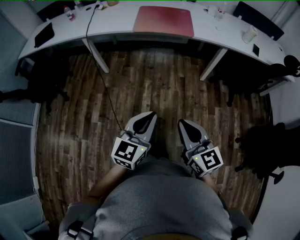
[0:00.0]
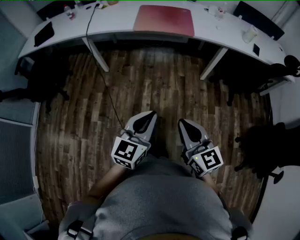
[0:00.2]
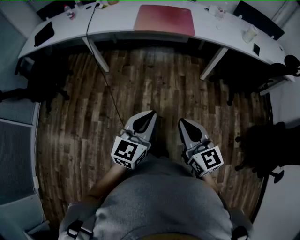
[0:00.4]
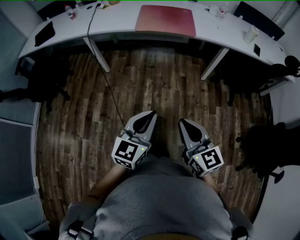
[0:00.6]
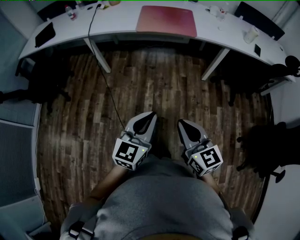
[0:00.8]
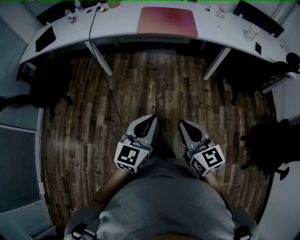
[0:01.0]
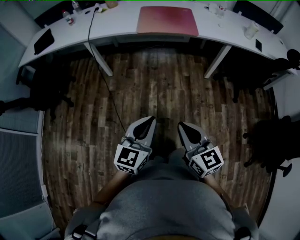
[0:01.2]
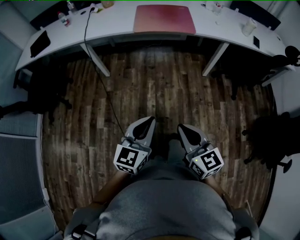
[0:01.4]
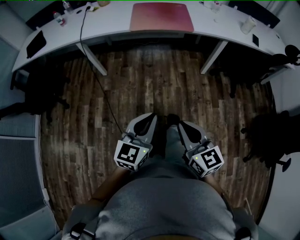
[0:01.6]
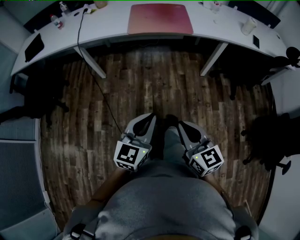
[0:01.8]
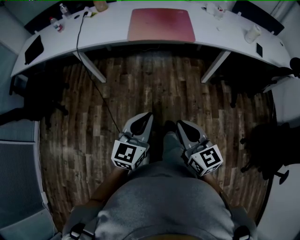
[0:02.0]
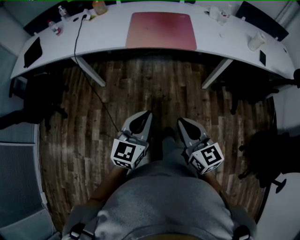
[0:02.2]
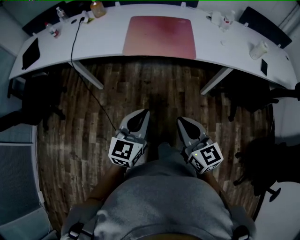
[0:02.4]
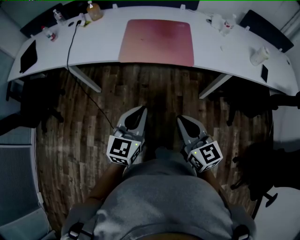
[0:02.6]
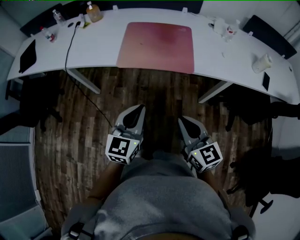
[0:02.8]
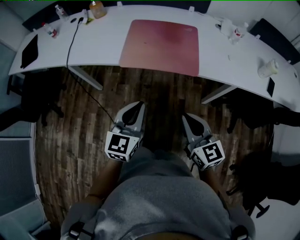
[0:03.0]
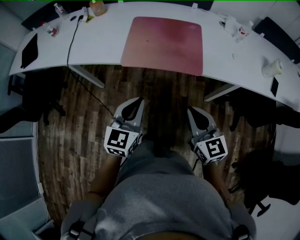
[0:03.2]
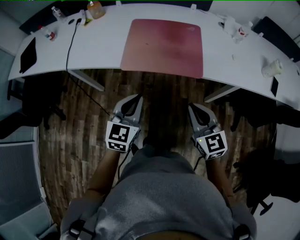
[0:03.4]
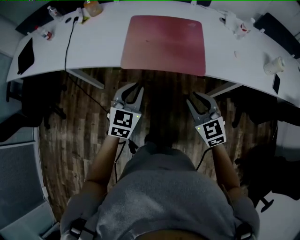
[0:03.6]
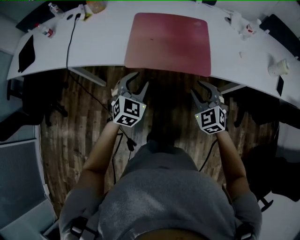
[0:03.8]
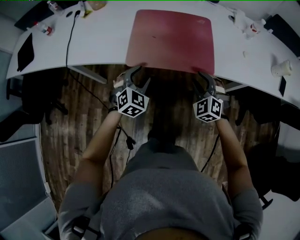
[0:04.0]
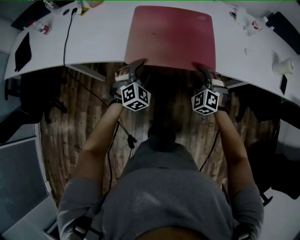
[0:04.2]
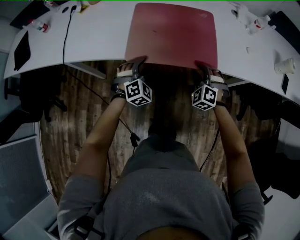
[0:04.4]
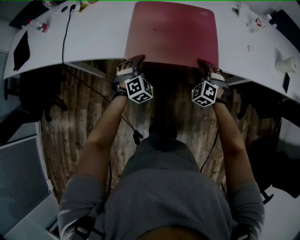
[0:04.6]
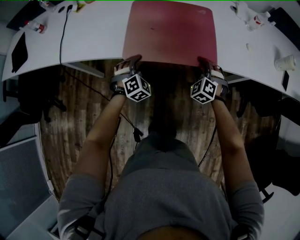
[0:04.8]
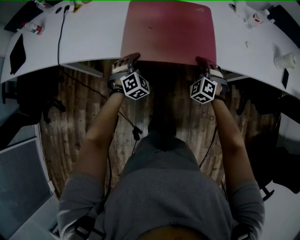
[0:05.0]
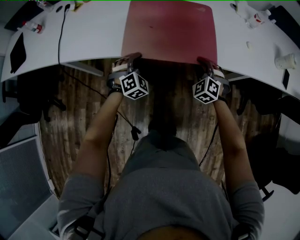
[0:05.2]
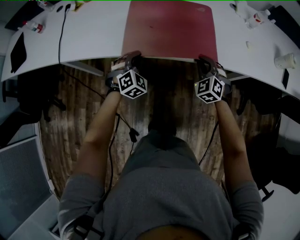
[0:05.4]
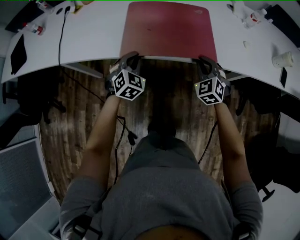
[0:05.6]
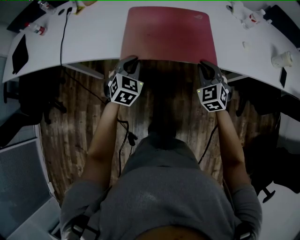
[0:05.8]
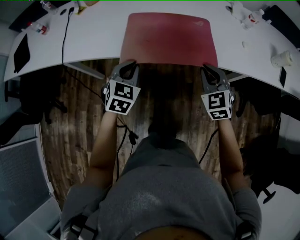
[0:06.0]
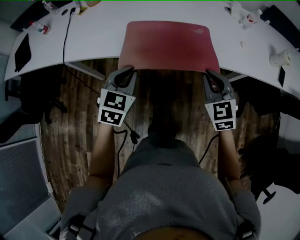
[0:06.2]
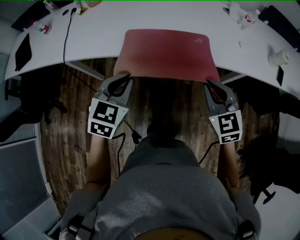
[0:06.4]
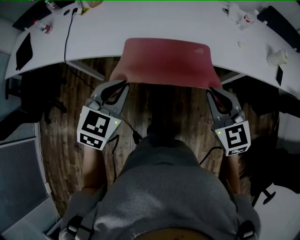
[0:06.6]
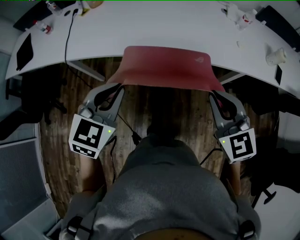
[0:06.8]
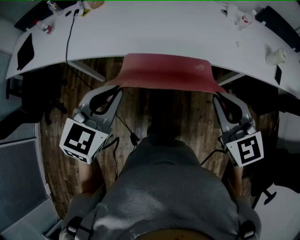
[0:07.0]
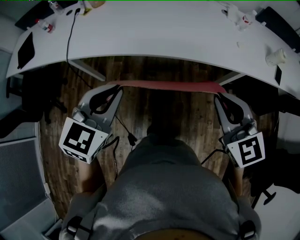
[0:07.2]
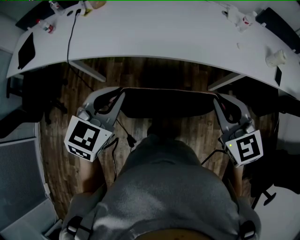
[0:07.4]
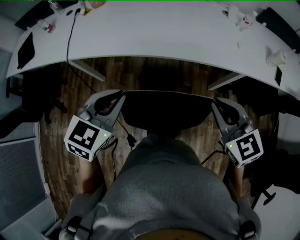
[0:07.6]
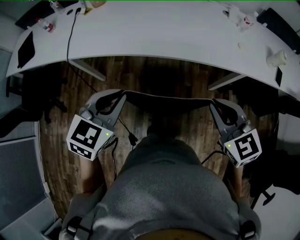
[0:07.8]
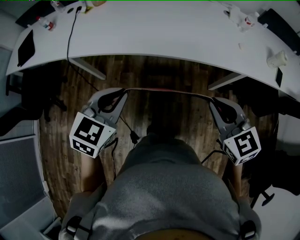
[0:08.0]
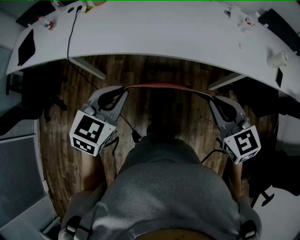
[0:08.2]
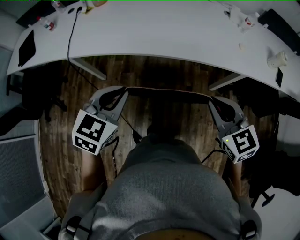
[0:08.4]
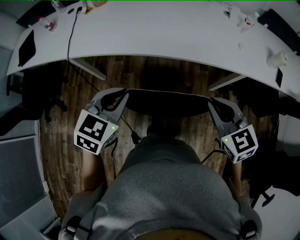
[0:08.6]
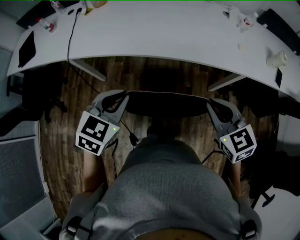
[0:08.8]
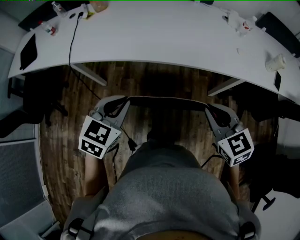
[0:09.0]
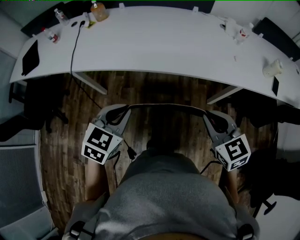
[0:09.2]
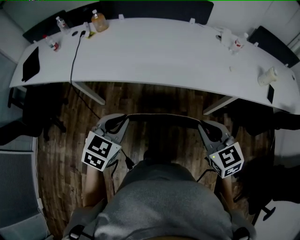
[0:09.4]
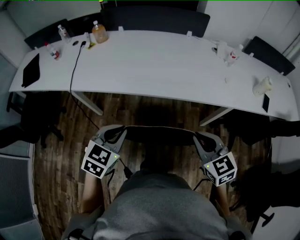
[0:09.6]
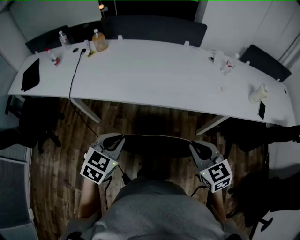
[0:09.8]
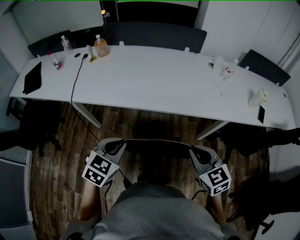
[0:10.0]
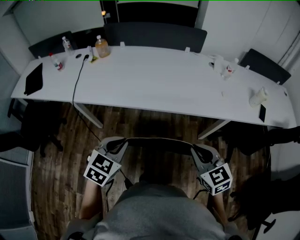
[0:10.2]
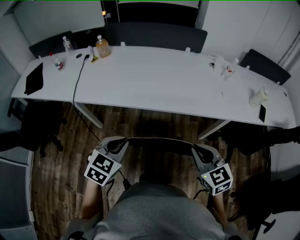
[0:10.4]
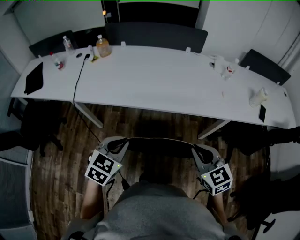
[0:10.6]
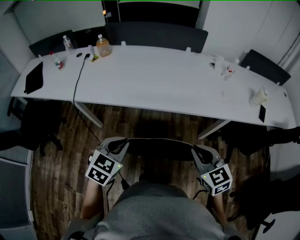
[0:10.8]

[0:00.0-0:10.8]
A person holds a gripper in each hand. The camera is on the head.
0:00.0 to 0:01.6: The right gripper ends up approximately 5 cm from where it was, while the left gripper ends up about 5 cm from where it was.
0:01.6 to 0:03.0: Both grippers move forward, approximately 35 cm.
0:03.0 to 0:04.6: Both grippers move forward and downward, approximately 30 cm. The left gripper rotates around the line of its fingers by roughly 50 degrees, clockwise from behind, and opens, while the right gripper twists roughly 60 degrees counterclockwise, seen from behind, and opens.
0:04.6 to 0:06.2: Both grippers move upward and backward, approximately 20 cm. The right gripper changes its angle by roughly 40 degrees, and closes up; the left gripper swivels approximately 40 degrees, and closes its fingers.
0:06.2 to 0:07.8: The two grippers go some 15 cm backward and upward.
0:07.8 to 0:09.2: The grippers make only small movements.
0:09.2 to 0:10.8: Neither gripper changes place.

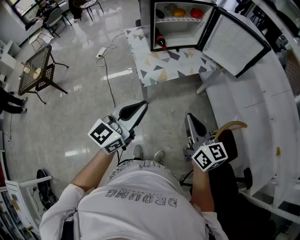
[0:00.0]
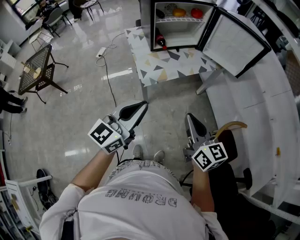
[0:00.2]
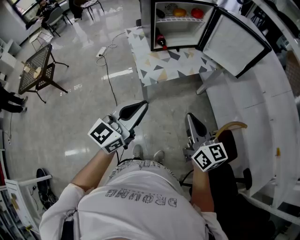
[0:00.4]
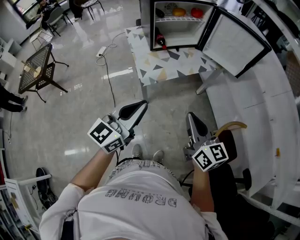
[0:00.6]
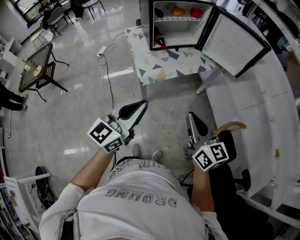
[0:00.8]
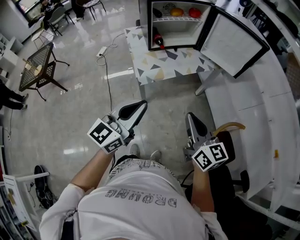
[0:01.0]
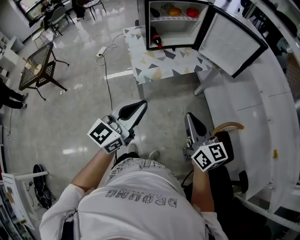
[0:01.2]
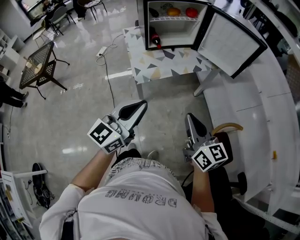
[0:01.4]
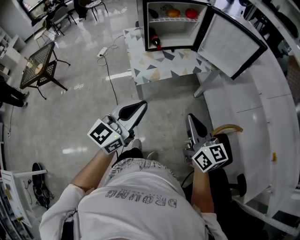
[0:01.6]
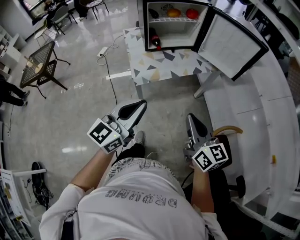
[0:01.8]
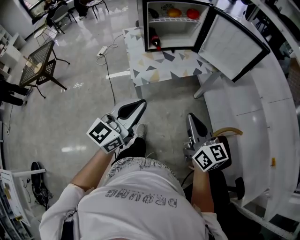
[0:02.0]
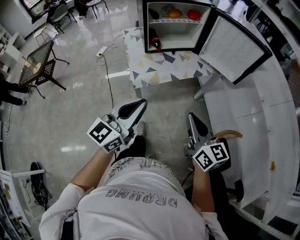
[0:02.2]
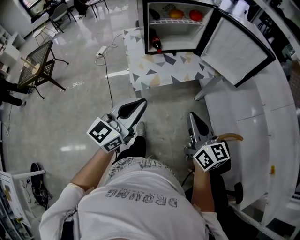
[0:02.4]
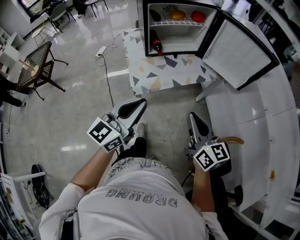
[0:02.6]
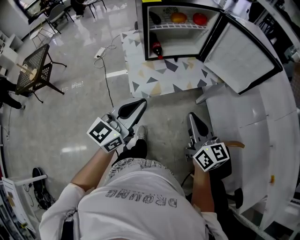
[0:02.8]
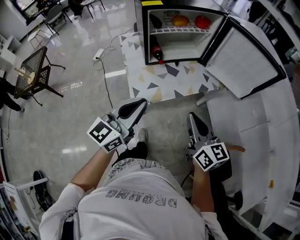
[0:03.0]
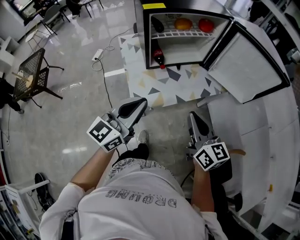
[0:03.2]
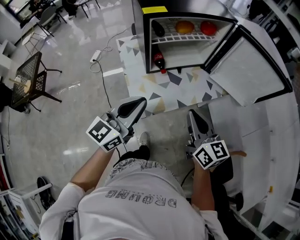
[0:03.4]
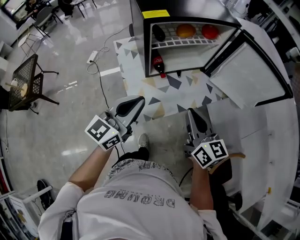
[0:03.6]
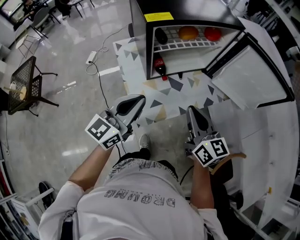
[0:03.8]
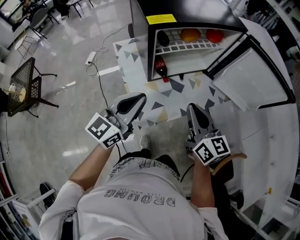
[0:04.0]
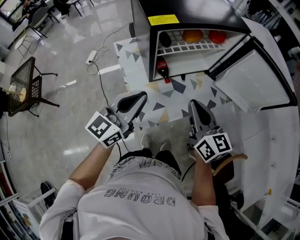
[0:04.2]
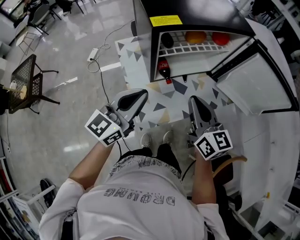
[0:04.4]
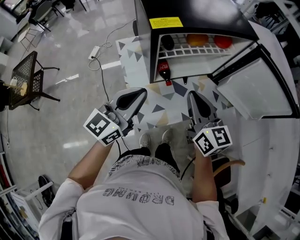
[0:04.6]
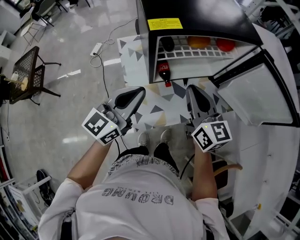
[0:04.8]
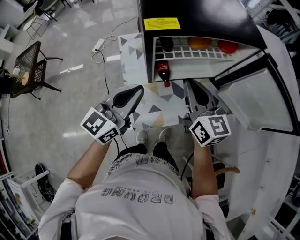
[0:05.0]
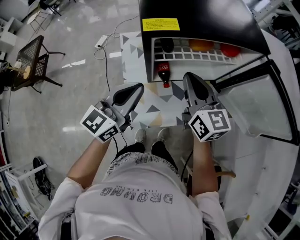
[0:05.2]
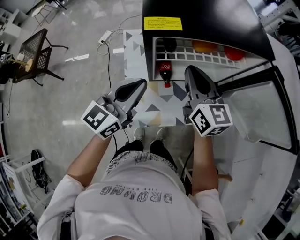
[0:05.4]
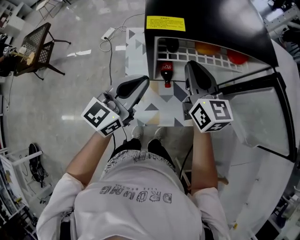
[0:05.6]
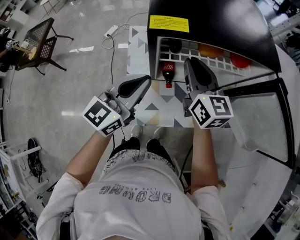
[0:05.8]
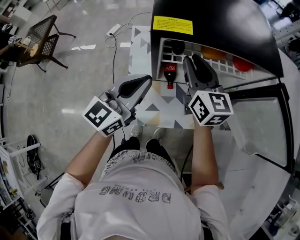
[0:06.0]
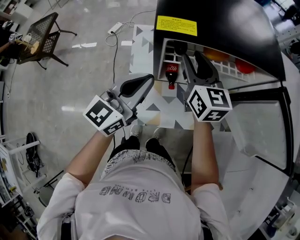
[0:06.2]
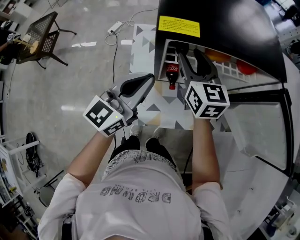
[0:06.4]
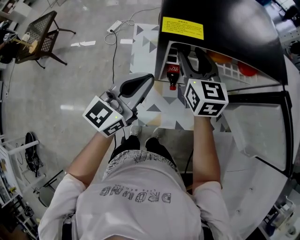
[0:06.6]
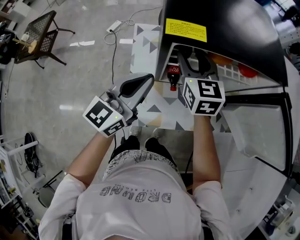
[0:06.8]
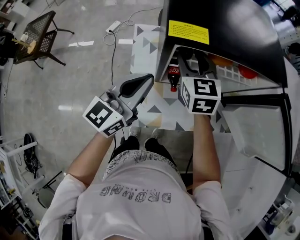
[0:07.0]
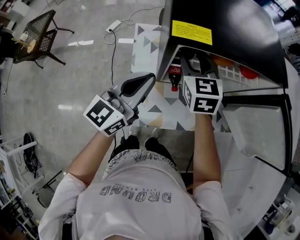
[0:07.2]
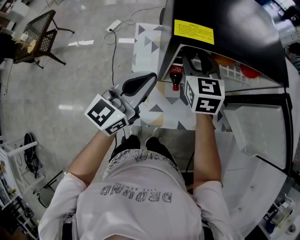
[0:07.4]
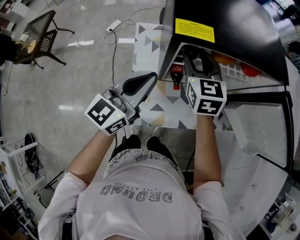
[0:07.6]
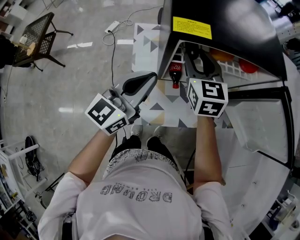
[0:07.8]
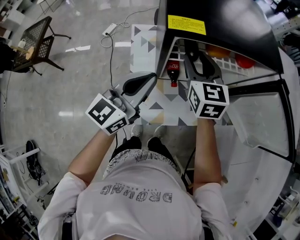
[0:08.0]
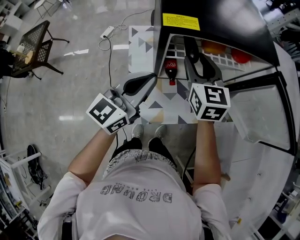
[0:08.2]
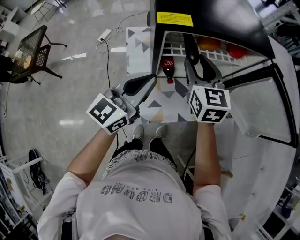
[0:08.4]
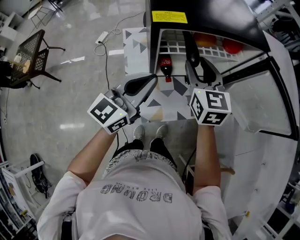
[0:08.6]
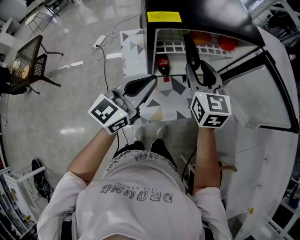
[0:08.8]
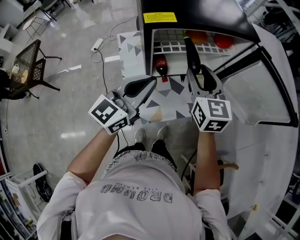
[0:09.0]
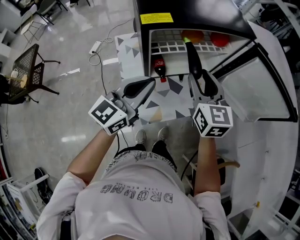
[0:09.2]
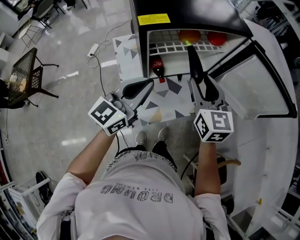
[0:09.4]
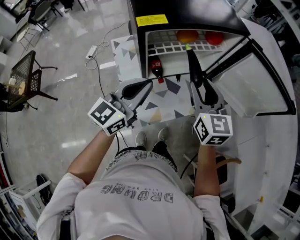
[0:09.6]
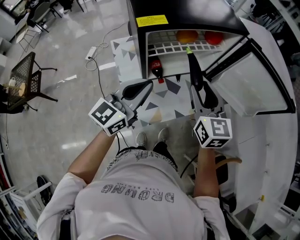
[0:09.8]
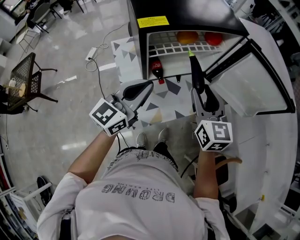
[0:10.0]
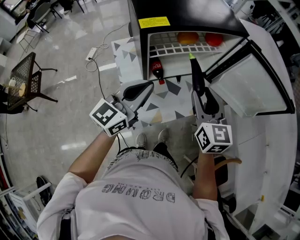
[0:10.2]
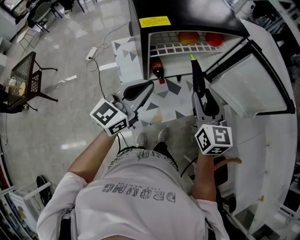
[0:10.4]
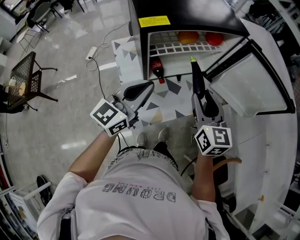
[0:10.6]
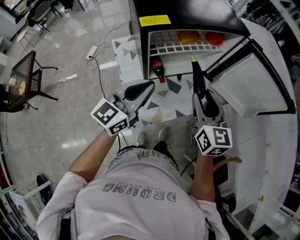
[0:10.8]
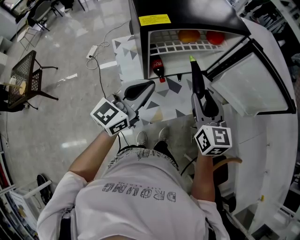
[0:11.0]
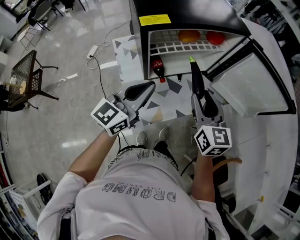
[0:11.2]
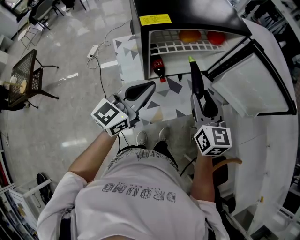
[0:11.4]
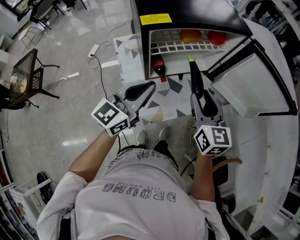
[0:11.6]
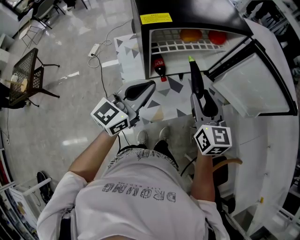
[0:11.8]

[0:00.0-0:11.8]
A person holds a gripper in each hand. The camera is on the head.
0:00.0 to 0:01.4: The two grippers go about 5 cm to the right.
0:01.4 to 0:03.0: Both grippers travel together forward, roughly 20 cm.
0:03.0 to 0:04.4: Both grippers travel together forward and to the left, about 20 cm.
0:04.4 to 0:06.0: The left gripper goes some 10 cm forward. The right gripper travels forward by approximately 20 cm.
0:06.0 to 0:07.4: The right gripper ends up roughly 5 cm from where it was, turns by some 20 degrees, and opens up.
0:07.4 to 0:08.8: The left gripper changes place by about 5 cm. The right gripper is displaced to the right and backward by roughly 15 cm.
0:08.8 to 0:10.4: The right gripper is displaced backward and to the right by some 10 cm.
0:10.4 to 0:11.8: The grippers stay close to where they were, moving slightly.

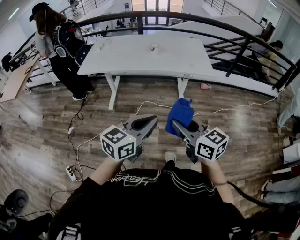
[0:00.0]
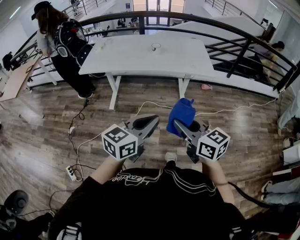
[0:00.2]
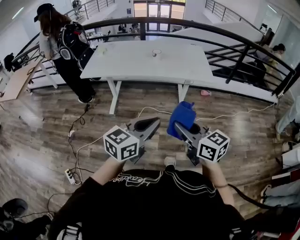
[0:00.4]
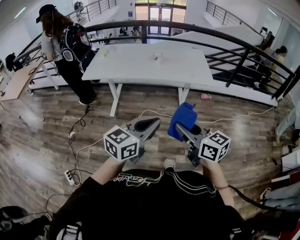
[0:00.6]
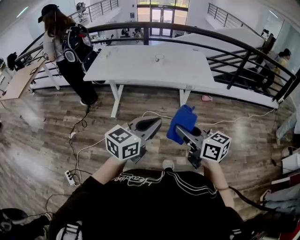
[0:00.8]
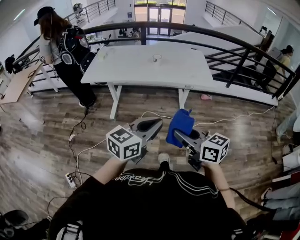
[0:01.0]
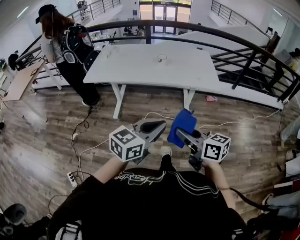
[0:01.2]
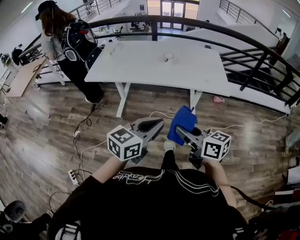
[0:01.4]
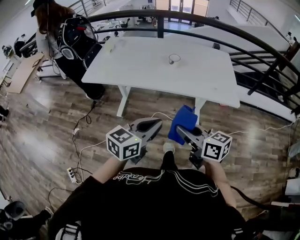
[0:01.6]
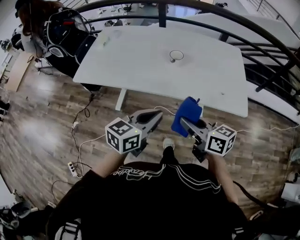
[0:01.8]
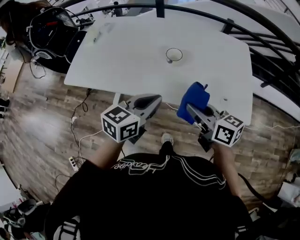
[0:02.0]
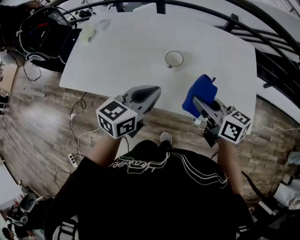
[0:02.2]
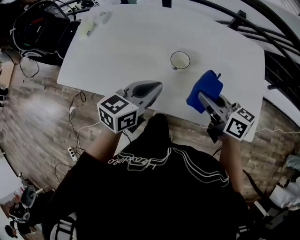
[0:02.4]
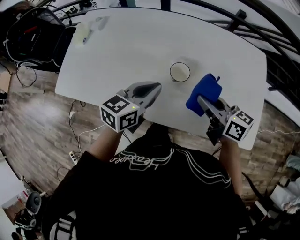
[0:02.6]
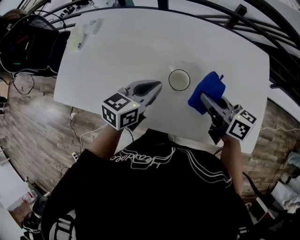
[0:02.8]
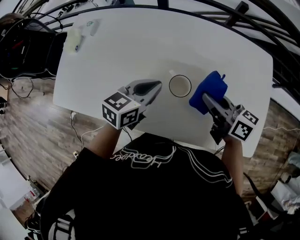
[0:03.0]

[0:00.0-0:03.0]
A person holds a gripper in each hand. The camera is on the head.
0:00.0 to 0:01.6: The grippers both shift forward by approximately 25 cm.
0:01.6 to 0:03.0: Both grippers are carried forward, about 50 cm.
